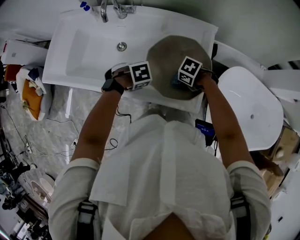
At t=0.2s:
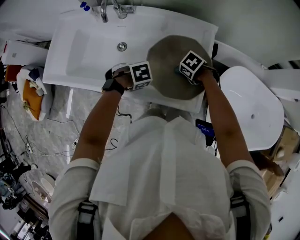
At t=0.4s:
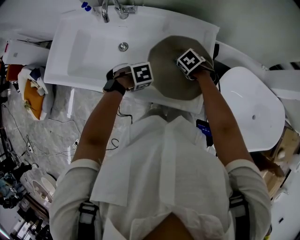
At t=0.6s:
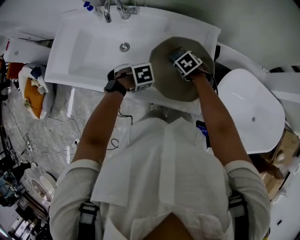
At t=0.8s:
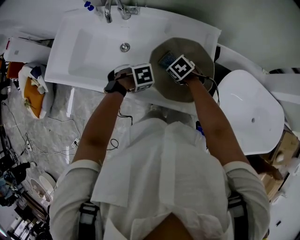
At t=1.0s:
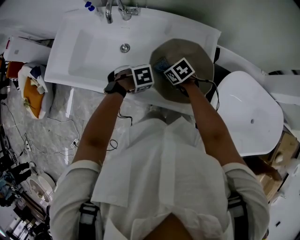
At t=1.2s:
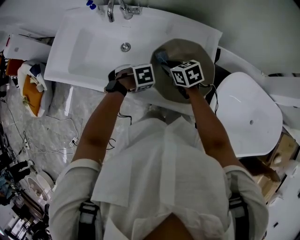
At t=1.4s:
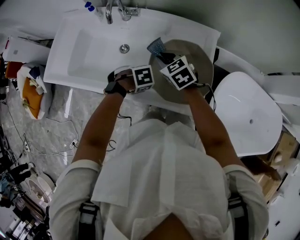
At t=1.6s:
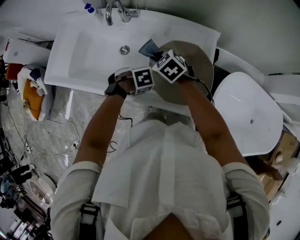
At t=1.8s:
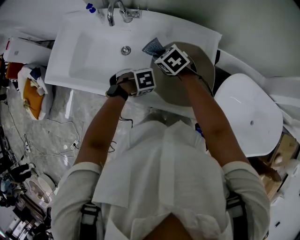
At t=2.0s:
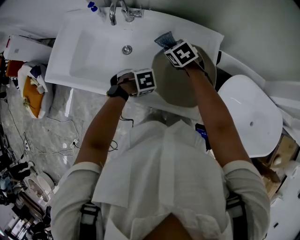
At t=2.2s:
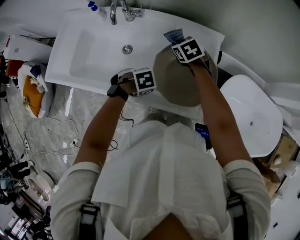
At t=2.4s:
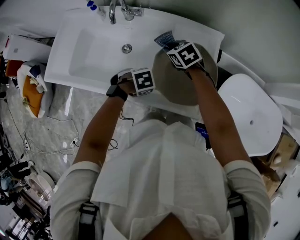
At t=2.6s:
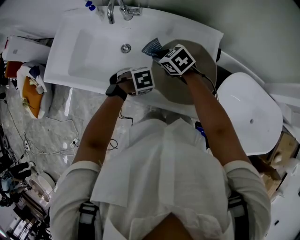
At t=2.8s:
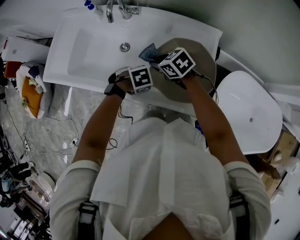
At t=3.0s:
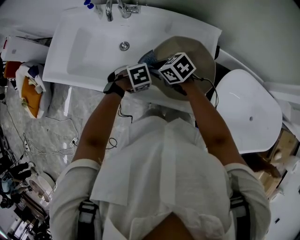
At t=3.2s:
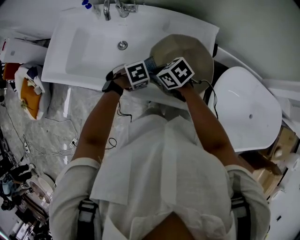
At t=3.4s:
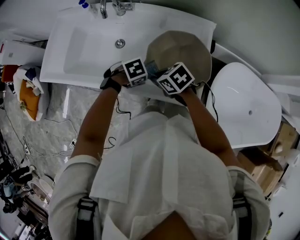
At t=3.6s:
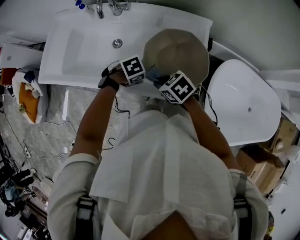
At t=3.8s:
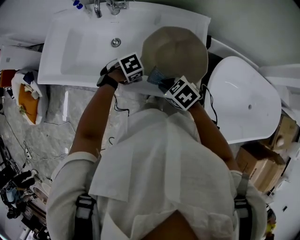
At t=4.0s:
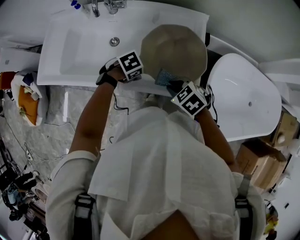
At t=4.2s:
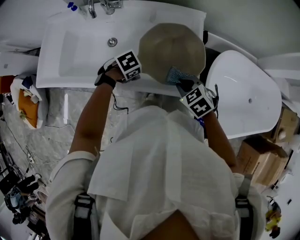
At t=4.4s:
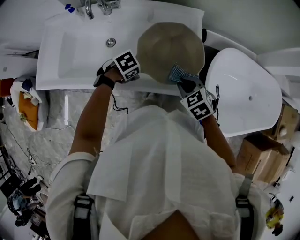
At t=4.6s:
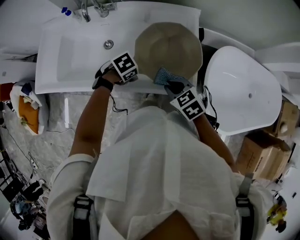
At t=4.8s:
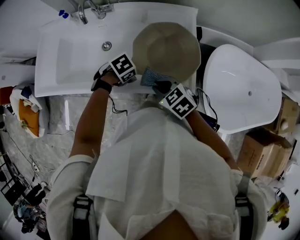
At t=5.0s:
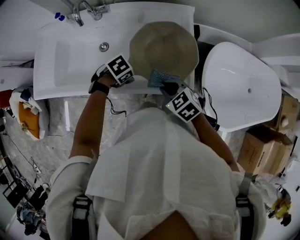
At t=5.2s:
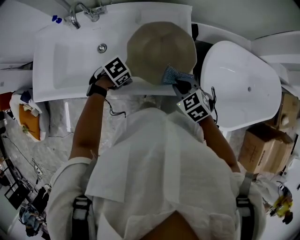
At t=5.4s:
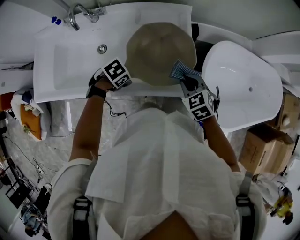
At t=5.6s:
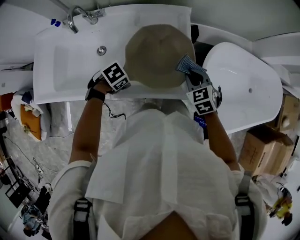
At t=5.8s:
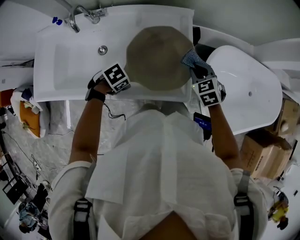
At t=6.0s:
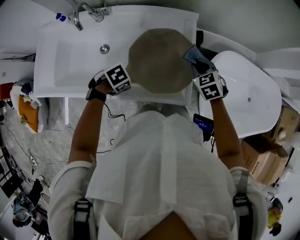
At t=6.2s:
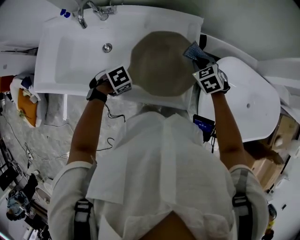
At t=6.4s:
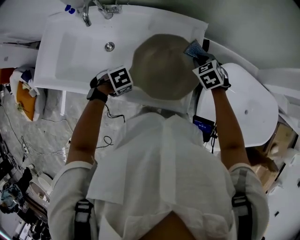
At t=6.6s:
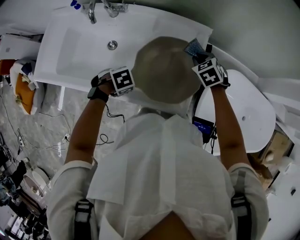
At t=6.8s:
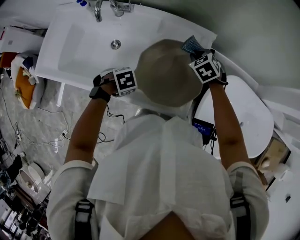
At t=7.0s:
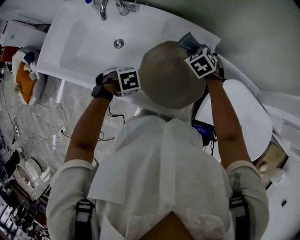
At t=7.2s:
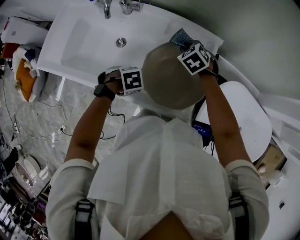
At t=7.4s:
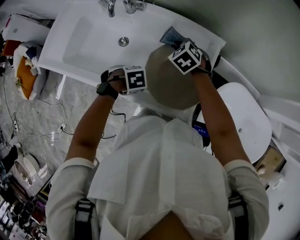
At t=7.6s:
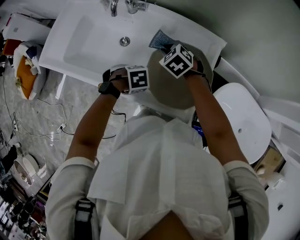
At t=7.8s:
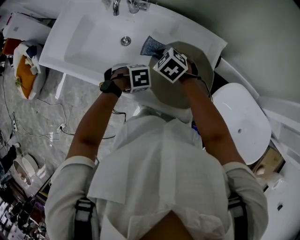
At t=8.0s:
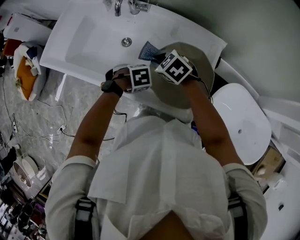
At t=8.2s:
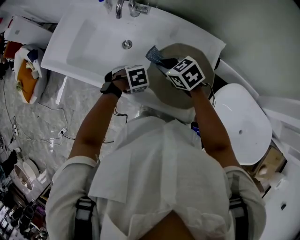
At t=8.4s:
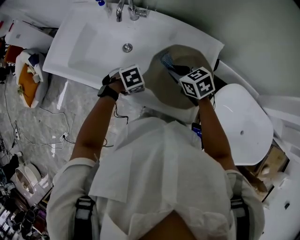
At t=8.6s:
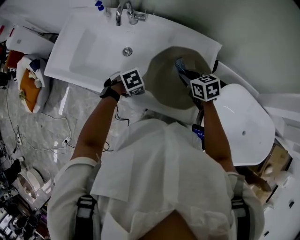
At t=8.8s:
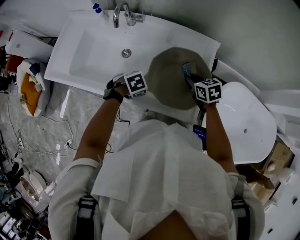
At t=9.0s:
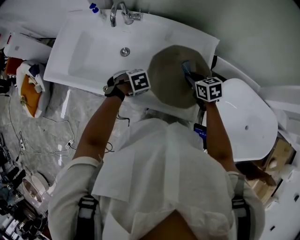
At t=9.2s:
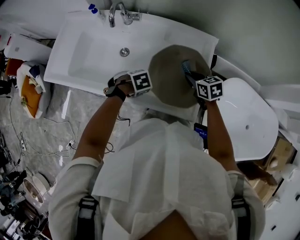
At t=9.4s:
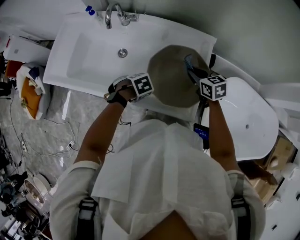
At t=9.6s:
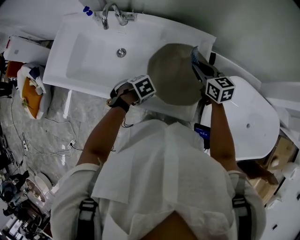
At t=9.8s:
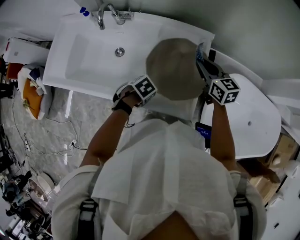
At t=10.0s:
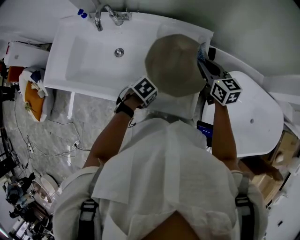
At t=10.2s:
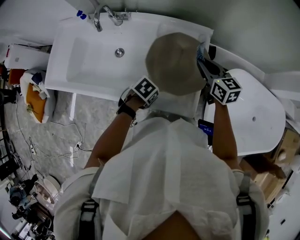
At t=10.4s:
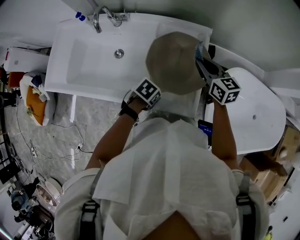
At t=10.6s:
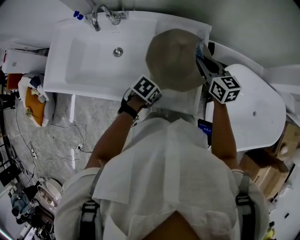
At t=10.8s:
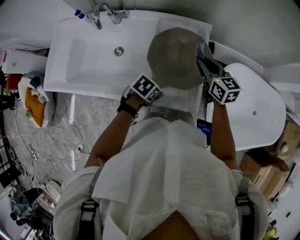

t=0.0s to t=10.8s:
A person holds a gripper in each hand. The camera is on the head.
t=0.0s to t=1.6s: The right gripper ends up about 25 cm from where it was, and rotates about 50 degrees.
t=1.6s to t=3.0s: The right gripper changes its angle by roughly 30 degrees.
t=3.0s to t=4.6s: The right gripper moves about 15 cm, and changes its angle by about 30 degrees.
t=4.6s to t=6.2s: The right gripper changes place by approximately 25 cm, and changes its angle by roughly 20 degrees.
t=6.2s to t=7.8s: The right gripper shifts by some 25 cm, and changes its angle by approximately 30 degrees.
t=7.8s to t=9.2s: The right gripper shifts by approximately 15 cm, and twists approximately 40 degrees clockwise, seen from behind.
t=9.2s to t=10.8s: The left gripper changes place by roughly 10 cm, and swivels about 30 degrees, while the right gripper heads upward, covering some 10 cm, and rotates some 30 degrees.

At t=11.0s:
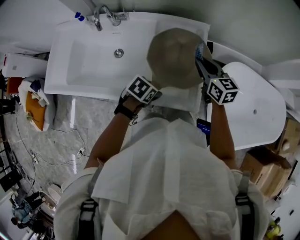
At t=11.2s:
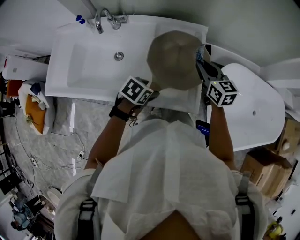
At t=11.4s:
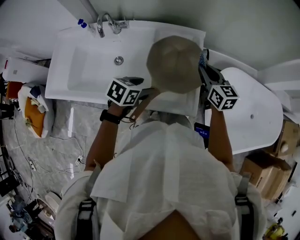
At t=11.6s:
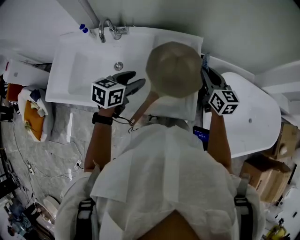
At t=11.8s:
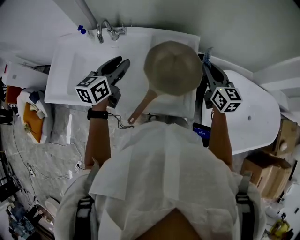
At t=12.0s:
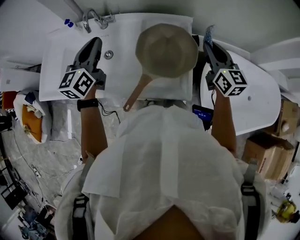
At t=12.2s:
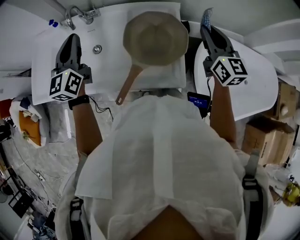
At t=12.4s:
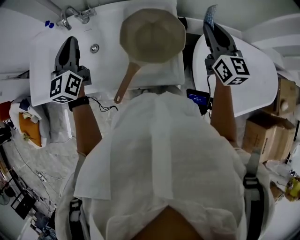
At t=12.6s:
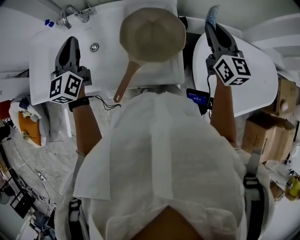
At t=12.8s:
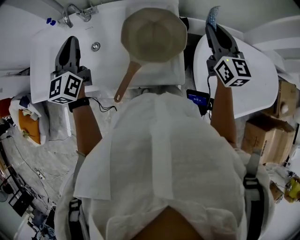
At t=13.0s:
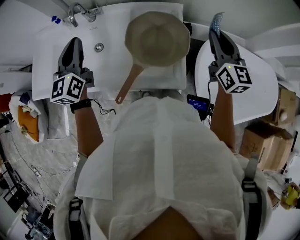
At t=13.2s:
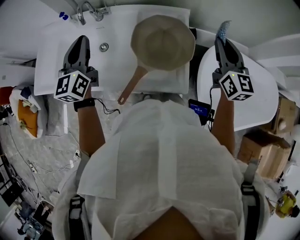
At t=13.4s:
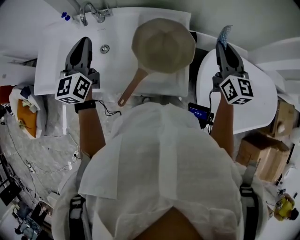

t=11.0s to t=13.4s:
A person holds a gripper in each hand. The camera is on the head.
t=11.0s to t=12.2s: The right gripper shifts roughly 15 cm upward and to the right, and rotates approximately 20 degrees, while the left gripper heads upward and to the left, covering approximately 35 cm, angles its fingers upward, by approximately 60 degrees, and closes.
t=12.2s to t=13.4s: The grippers move only a little.

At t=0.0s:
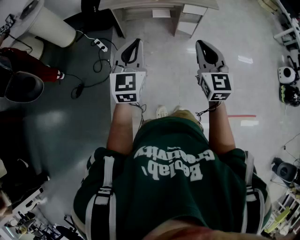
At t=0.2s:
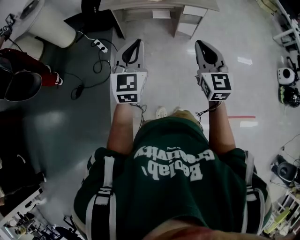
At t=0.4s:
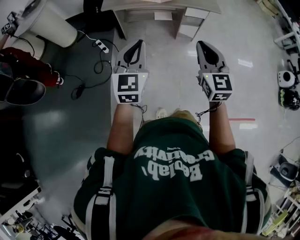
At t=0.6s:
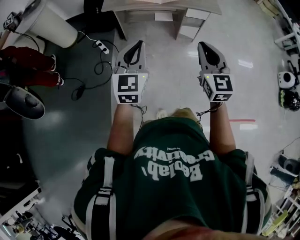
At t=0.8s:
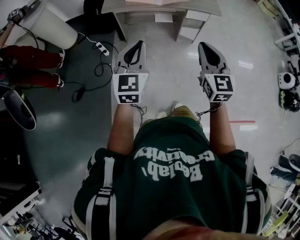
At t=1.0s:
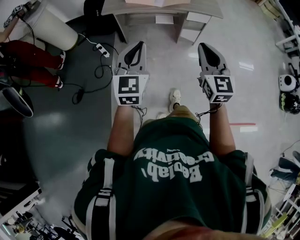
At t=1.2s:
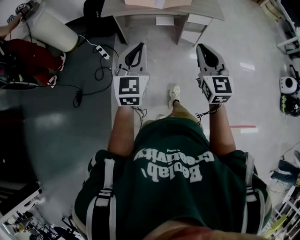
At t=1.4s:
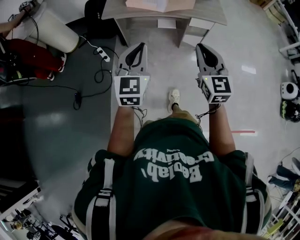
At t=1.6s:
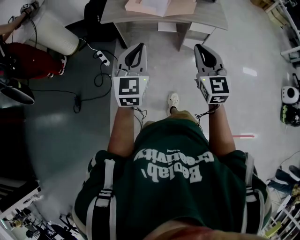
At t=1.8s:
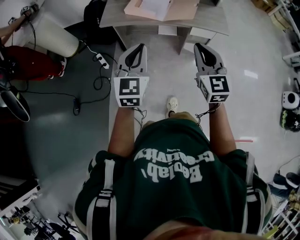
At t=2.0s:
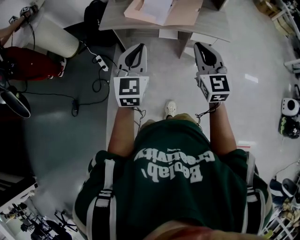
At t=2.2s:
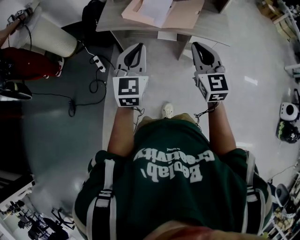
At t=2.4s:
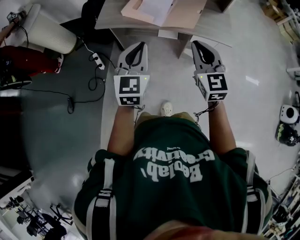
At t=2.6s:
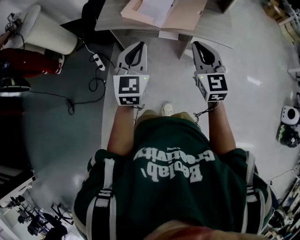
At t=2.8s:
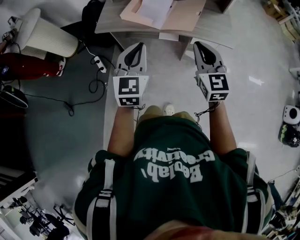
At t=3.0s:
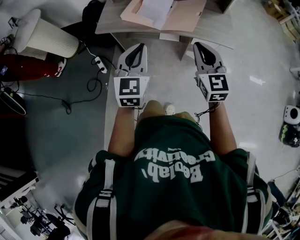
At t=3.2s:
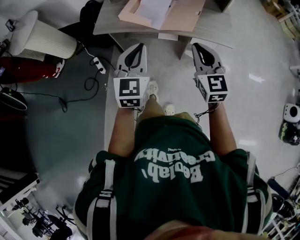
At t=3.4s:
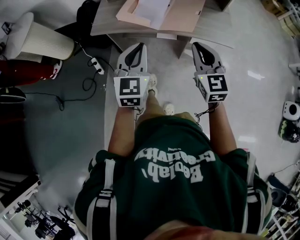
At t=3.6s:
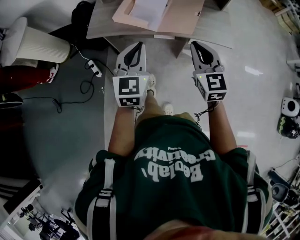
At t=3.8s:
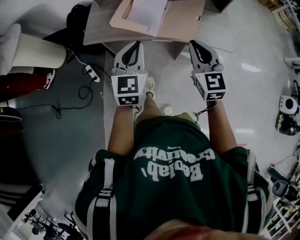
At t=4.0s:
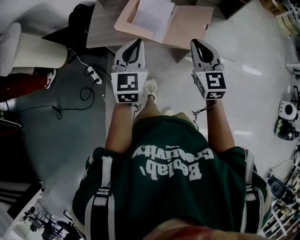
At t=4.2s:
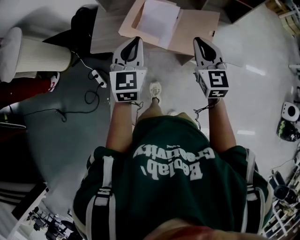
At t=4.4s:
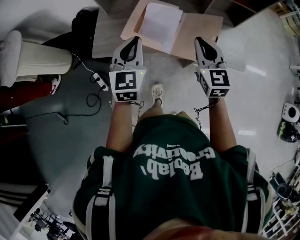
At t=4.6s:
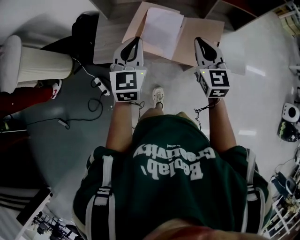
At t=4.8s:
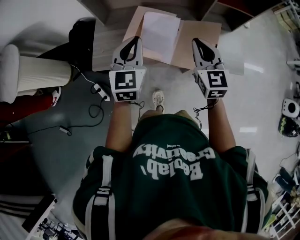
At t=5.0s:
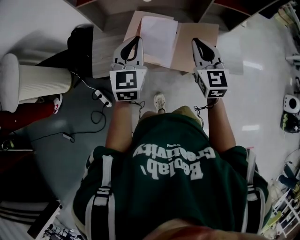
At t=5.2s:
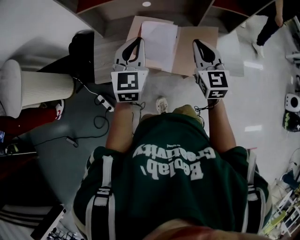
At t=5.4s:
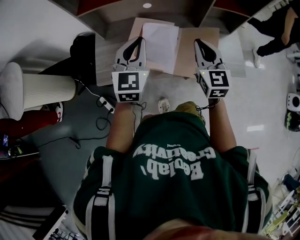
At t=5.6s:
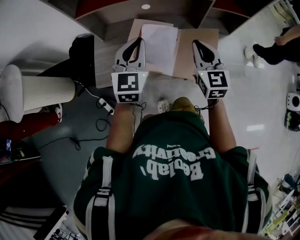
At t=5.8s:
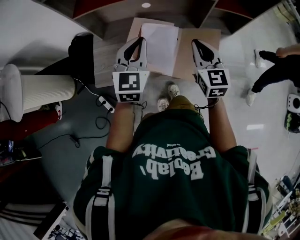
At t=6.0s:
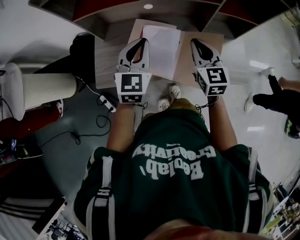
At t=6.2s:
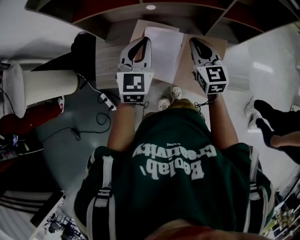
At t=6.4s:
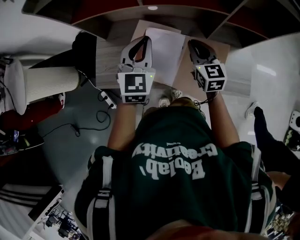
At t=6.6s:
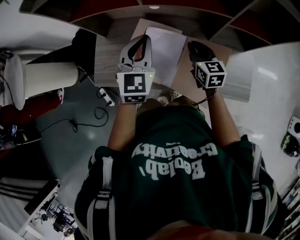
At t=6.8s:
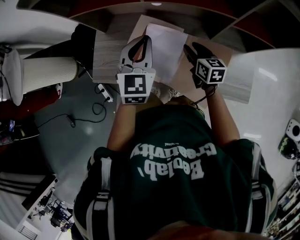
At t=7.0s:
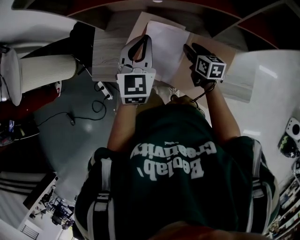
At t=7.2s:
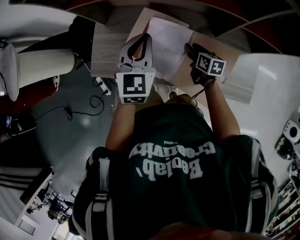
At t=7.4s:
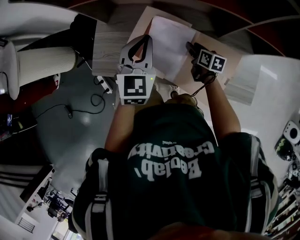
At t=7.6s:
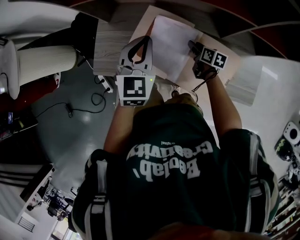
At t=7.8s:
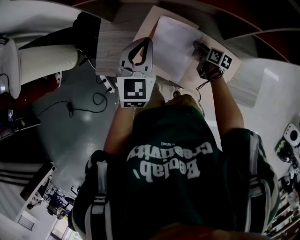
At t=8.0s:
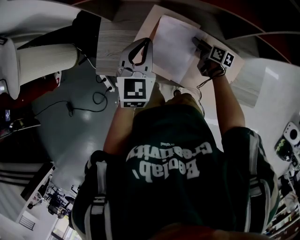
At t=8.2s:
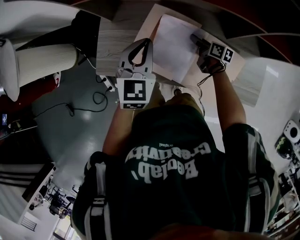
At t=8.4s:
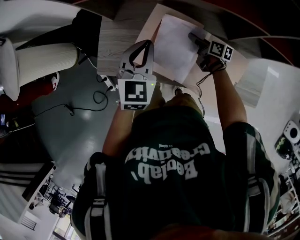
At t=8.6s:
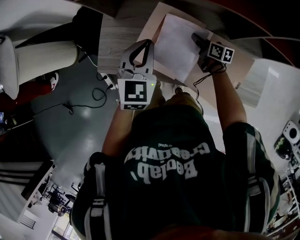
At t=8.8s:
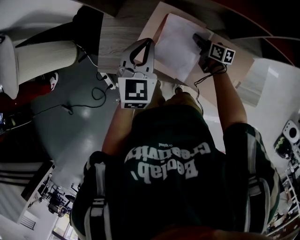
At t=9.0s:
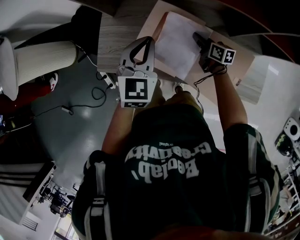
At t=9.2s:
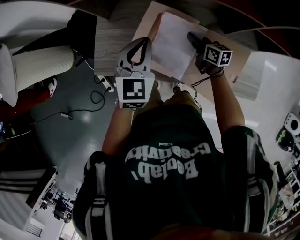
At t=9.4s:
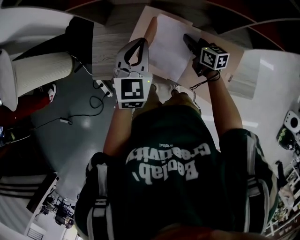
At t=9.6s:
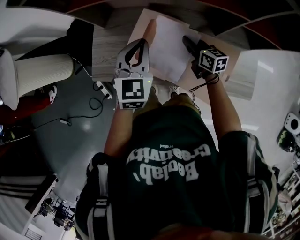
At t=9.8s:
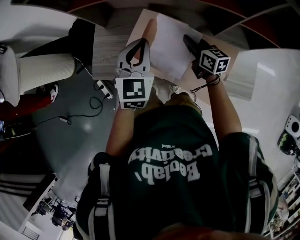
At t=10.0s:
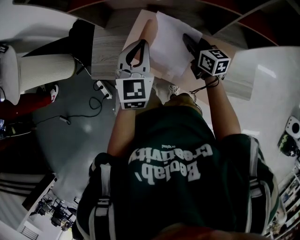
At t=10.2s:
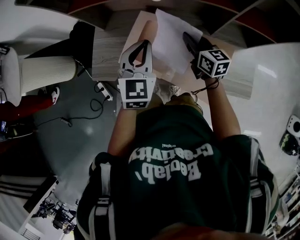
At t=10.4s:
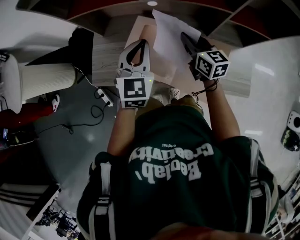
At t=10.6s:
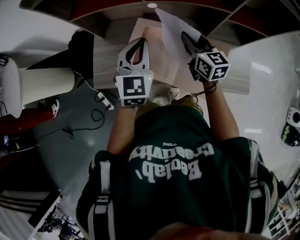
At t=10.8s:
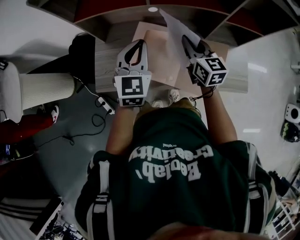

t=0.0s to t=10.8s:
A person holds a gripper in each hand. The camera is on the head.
t=0.0s to t=1.6s: Both grippers travel together forward, approximately 15 cm.
t=1.6s to t=3.0s: The two grippers go some 20 cm forward and to the right.
t=3.0s to t=4.6s: The two grippers go some 25 cm forward.
t=4.6s to t=6.2s: The left gripper heads forward and to the right, covering some 15 cm. The right gripper shifts approximately 15 cm forward.
t=6.2s to t=7.8s: The right gripper is displaced downward by roughly 30 cm, rotates around the line of its fingers by roughly 50 degrees, clockwise from behind, and opens; the left gripper moves downward, approximately 5 cm.
t=7.8s to t=9.2s: The right gripper moves upward and to the left, roughly 10 cm, changes its angle by roughly 20 degrees, and closes.
t=9.2s to t=10.8s: The right gripper shifts roughly 20 cm upward, and turns by some 30 degrees. Meanwhile the left gripper is displaced upward by roughly 5 cm.
